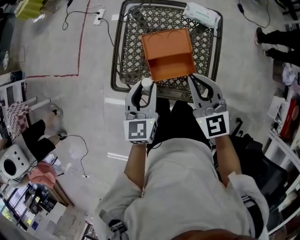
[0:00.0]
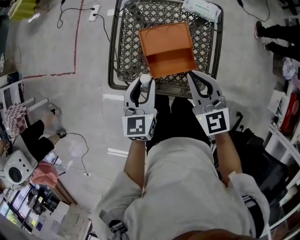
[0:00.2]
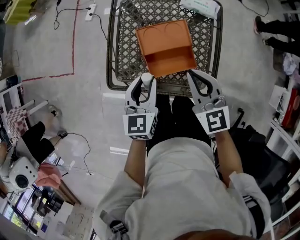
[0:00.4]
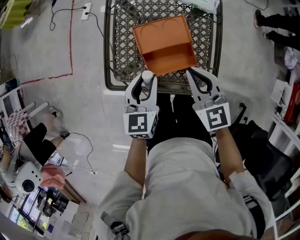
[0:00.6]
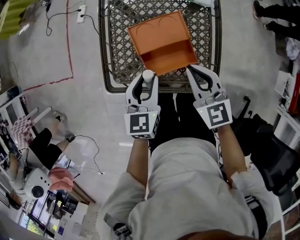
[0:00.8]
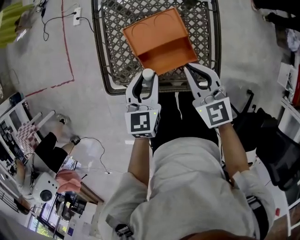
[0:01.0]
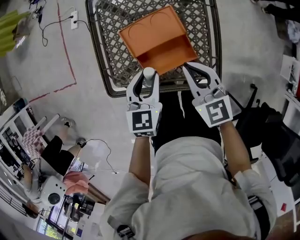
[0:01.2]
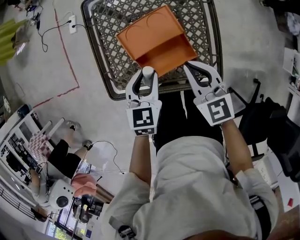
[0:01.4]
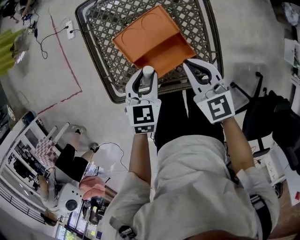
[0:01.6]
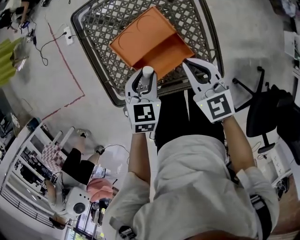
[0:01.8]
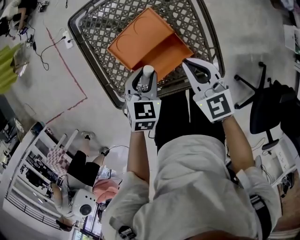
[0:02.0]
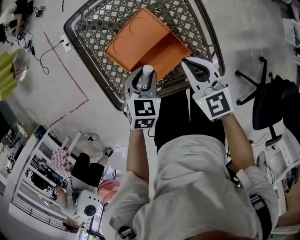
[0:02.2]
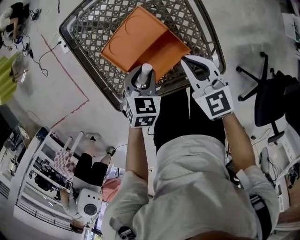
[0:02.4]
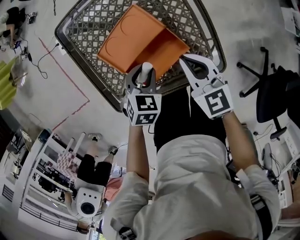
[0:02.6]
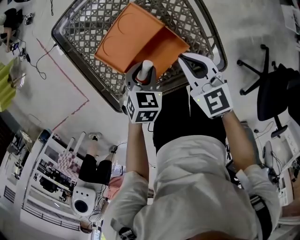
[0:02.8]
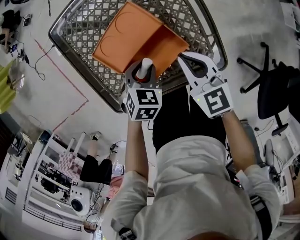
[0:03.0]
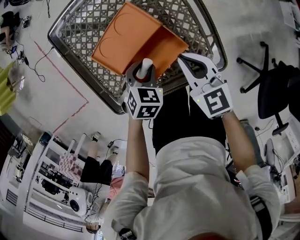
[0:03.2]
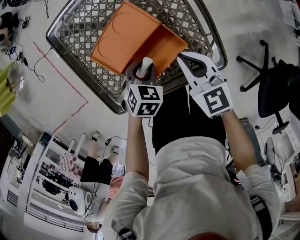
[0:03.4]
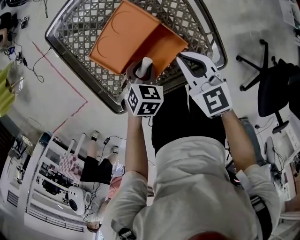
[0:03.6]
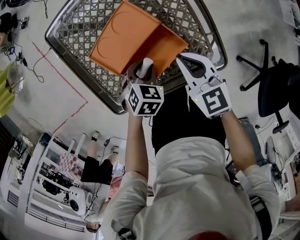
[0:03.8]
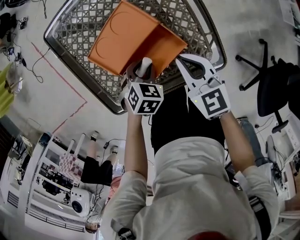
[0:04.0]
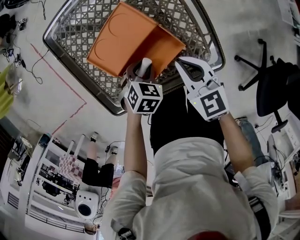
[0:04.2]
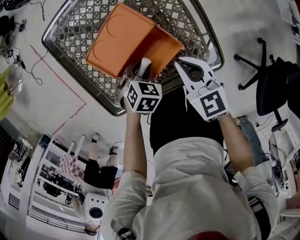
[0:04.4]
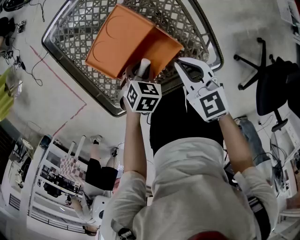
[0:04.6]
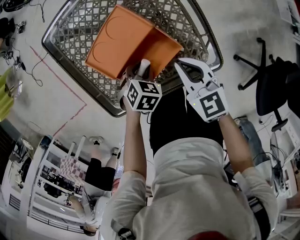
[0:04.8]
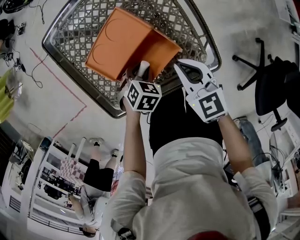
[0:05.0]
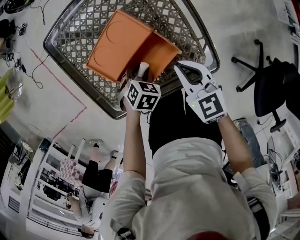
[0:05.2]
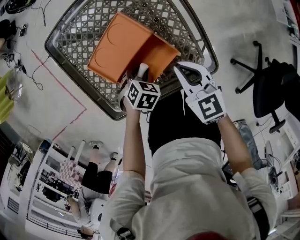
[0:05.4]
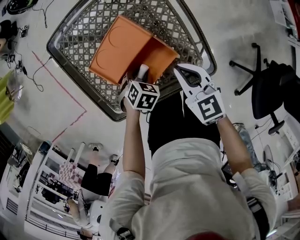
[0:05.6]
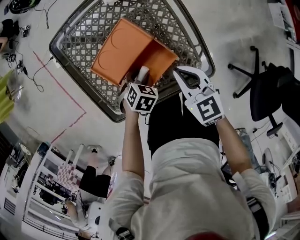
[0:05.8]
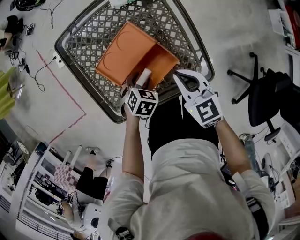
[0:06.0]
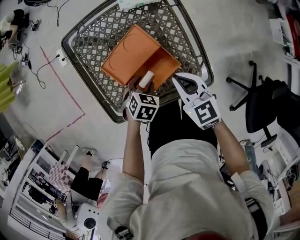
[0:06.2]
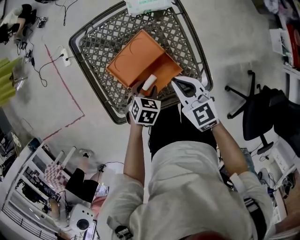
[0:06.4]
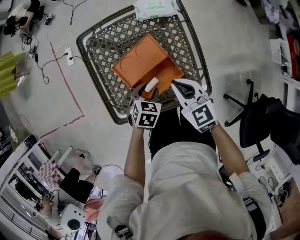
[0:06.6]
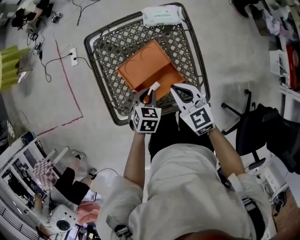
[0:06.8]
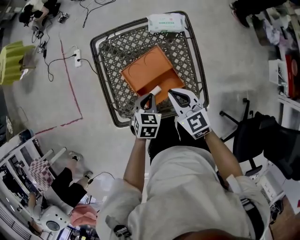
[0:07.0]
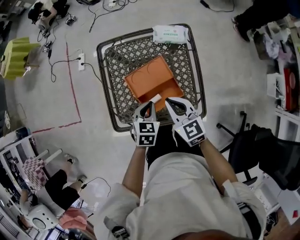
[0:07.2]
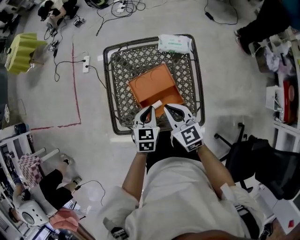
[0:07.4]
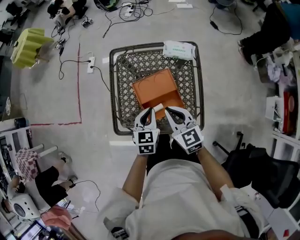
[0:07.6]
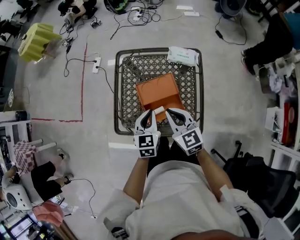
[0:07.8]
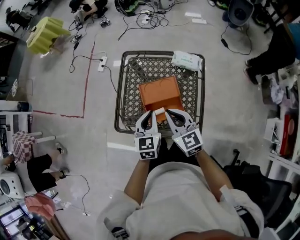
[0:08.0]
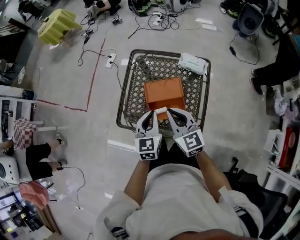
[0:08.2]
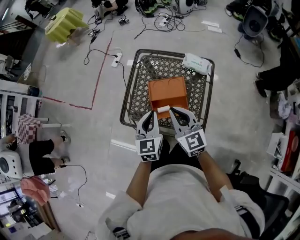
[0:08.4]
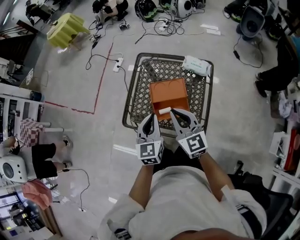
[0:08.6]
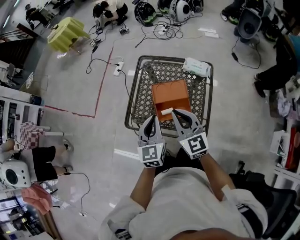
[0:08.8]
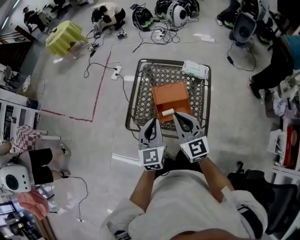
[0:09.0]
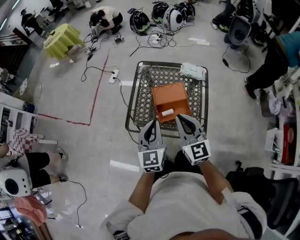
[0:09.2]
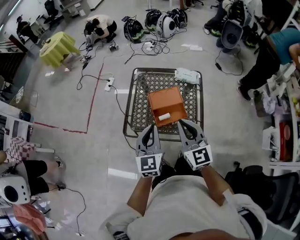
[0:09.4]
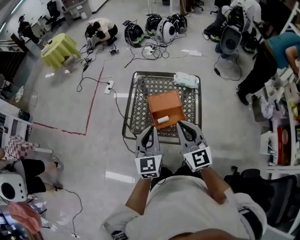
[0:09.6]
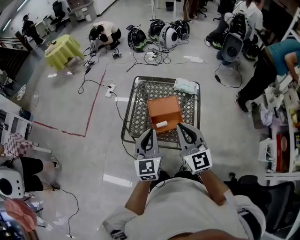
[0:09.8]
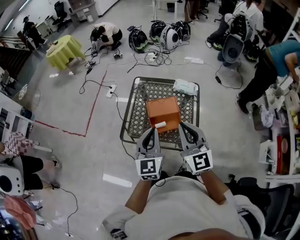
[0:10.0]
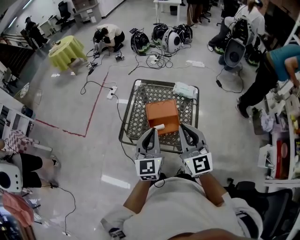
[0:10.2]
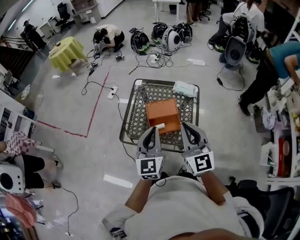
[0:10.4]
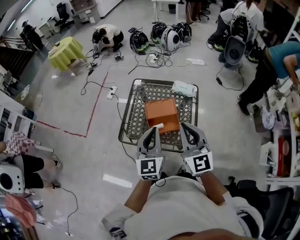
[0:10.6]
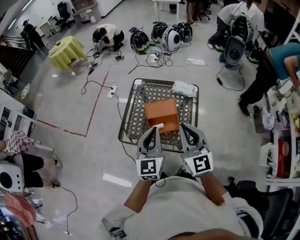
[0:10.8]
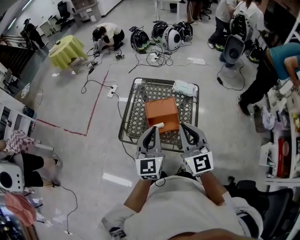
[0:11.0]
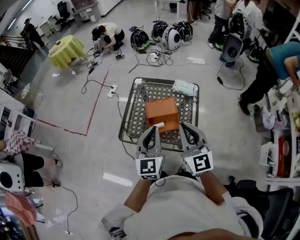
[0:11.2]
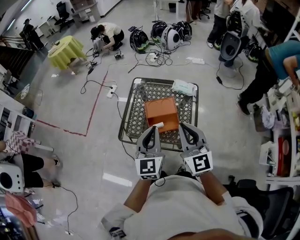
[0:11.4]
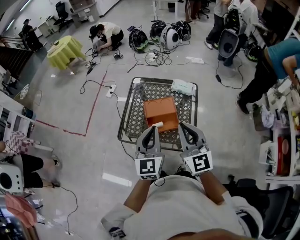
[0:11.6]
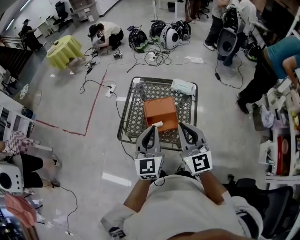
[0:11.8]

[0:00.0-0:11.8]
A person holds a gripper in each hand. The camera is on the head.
0:00.0 to 0:01.4: Both grippers move downward, approximately 15 cm. The left gripper rotates approximately 30 degrees.
0:01.4 to 0:03.0: Both grippers move downward, about 10 cm. The left gripper turns by about 40 degrees.
0:03.0 to 0:04.4: The left gripper ends up roughly 5 cm from where it was.
0:04.4 to 0:06.0: The grippers make only small movements.
0:06.0 to 0:07.4: The right gripper is displaced upward by approximately 10 cm. The left gripper travels upward by some 20 cm, points its fingers some 30 degrees further upward, and closes.
0:07.4 to 0:08.8: The two grippers go roughly 15 cm upward and backward. The left gripper changes its angle by approximately 40 degrees, while the right gripper swivels some 20 degrees.
0:08.8 to 0:10.4: Both grippers move upward and backward, approximately 15 cm.
0:10.4 to 0:11.8: Neither gripper changes place.

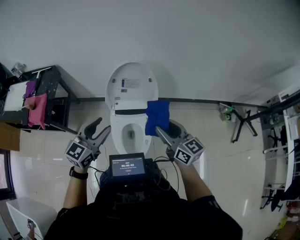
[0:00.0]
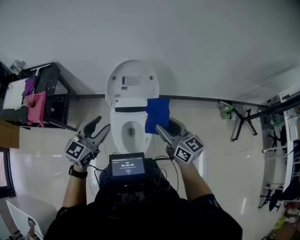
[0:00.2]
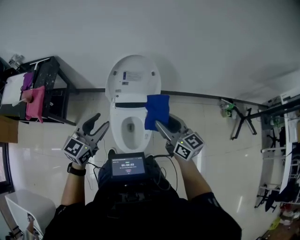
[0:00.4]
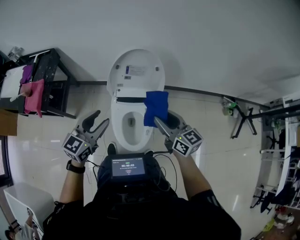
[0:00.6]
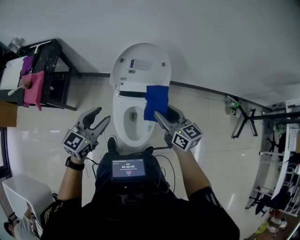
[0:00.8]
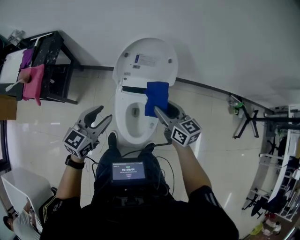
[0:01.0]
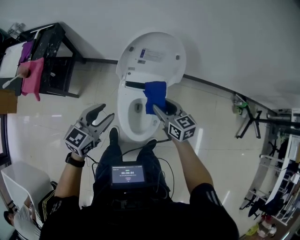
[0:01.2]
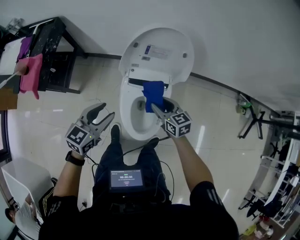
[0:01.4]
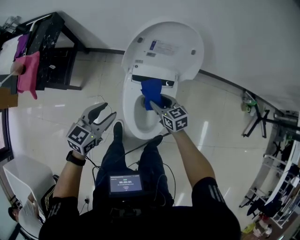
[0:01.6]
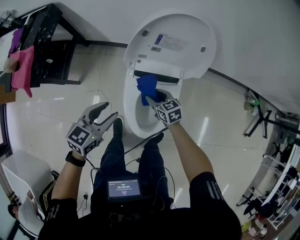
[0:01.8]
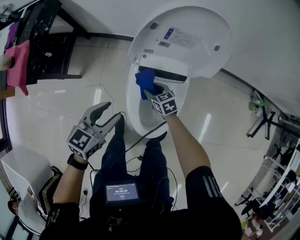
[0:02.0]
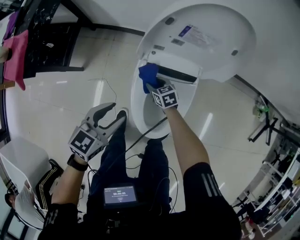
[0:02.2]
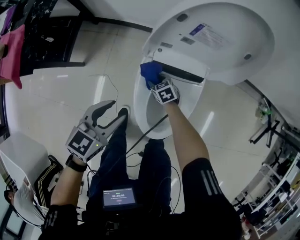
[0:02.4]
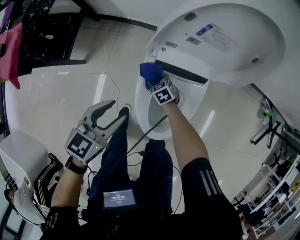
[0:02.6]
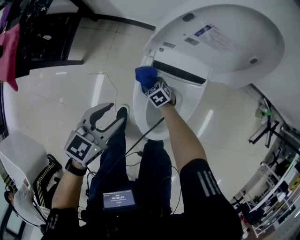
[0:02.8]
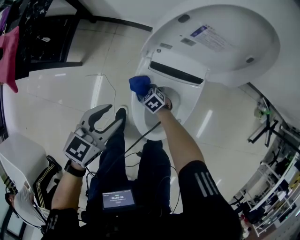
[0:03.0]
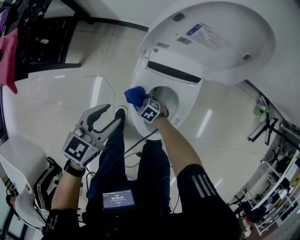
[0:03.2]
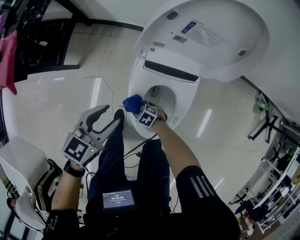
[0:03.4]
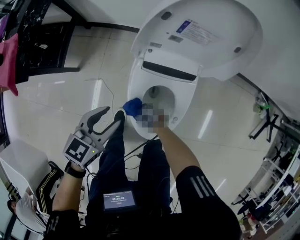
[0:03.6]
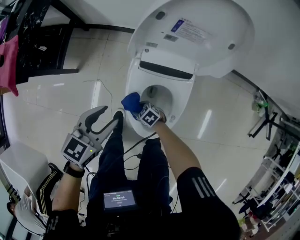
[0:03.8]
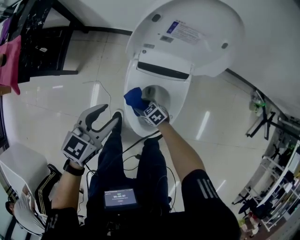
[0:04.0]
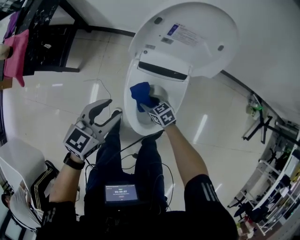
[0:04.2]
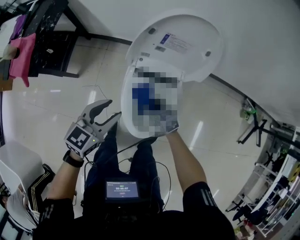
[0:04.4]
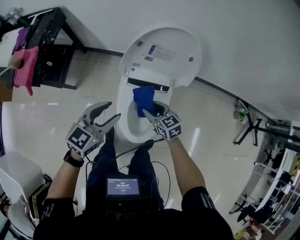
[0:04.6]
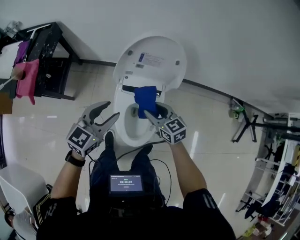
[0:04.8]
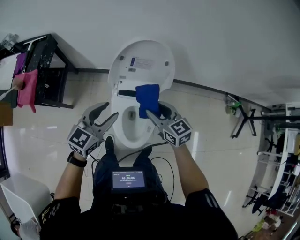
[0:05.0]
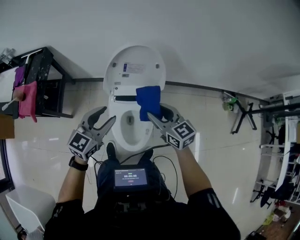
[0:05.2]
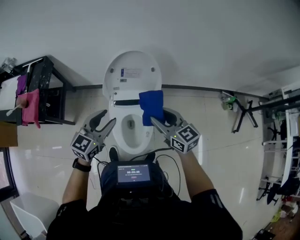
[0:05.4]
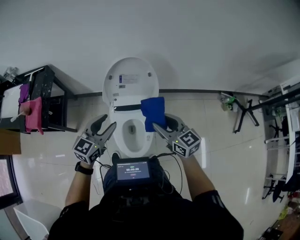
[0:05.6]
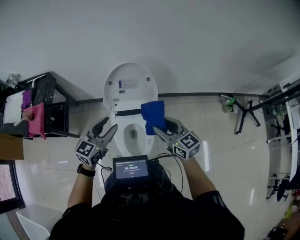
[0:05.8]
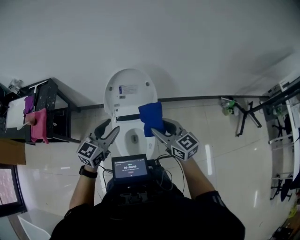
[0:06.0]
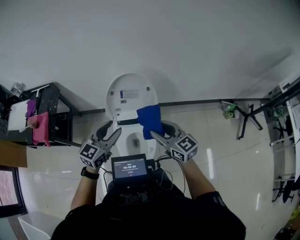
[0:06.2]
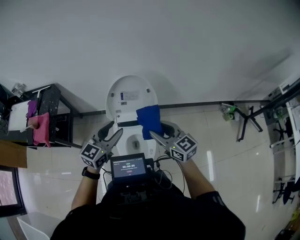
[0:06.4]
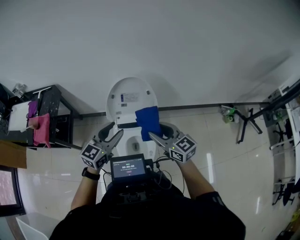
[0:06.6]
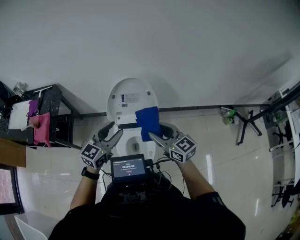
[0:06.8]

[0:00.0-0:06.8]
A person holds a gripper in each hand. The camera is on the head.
0:00.0 to 0:01.4: The right gripper travels downward and forward by roughly 30 cm, and changes its angle by roughly 30 degrees; the left gripper is displaced downward by about 20 cm.
0:01.4 to 0:02.8: The left gripper heads downward, covering approximately 15 cm. Meanwhile the right gripper heads downward, covering roughly 40 cm, and tilts its fingers approximately 30 degrees downward.
0:02.8 to 0:04.0: The left gripper changes place by some 5 cm. Meanwhile the right gripper moves roughly 15 cm.
0:04.0 to 0:05.4: The left gripper heads upward, covering roughly 25 cm, and changes its angle by approximately 20 degrees; the right gripper travels upward by approximately 50 cm, and angles its fingers upward, by some 40 degrees.
0:05.4 to 0:06.8: The two grippers go some 5 cm upward.

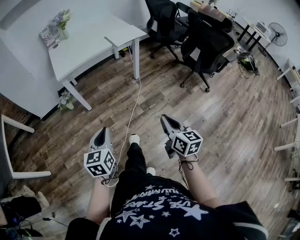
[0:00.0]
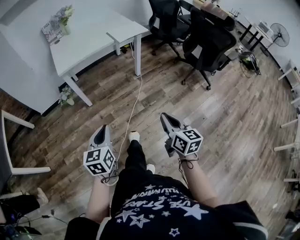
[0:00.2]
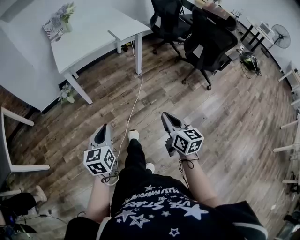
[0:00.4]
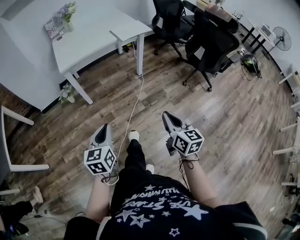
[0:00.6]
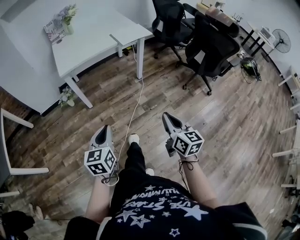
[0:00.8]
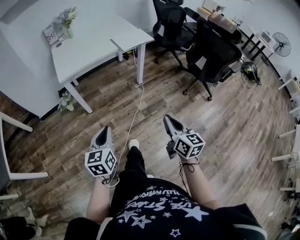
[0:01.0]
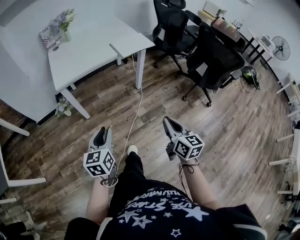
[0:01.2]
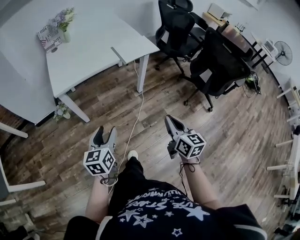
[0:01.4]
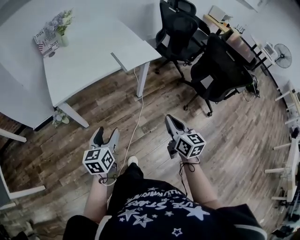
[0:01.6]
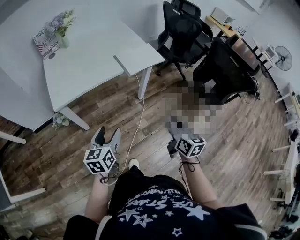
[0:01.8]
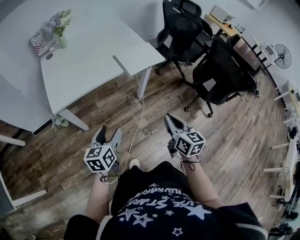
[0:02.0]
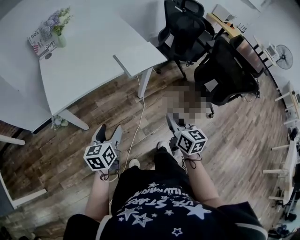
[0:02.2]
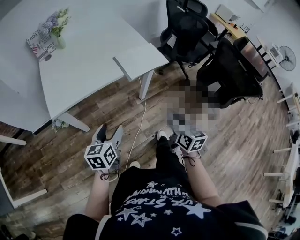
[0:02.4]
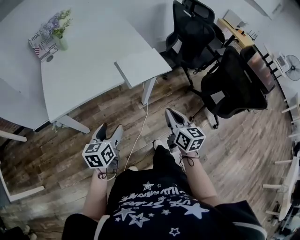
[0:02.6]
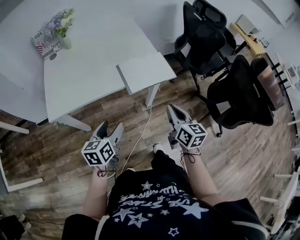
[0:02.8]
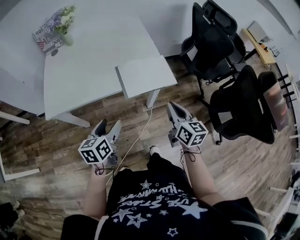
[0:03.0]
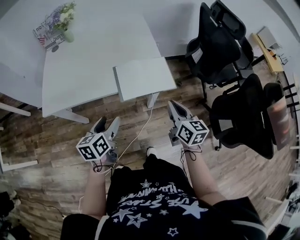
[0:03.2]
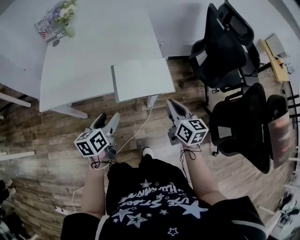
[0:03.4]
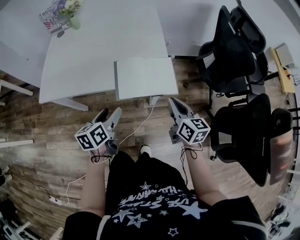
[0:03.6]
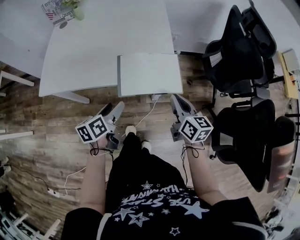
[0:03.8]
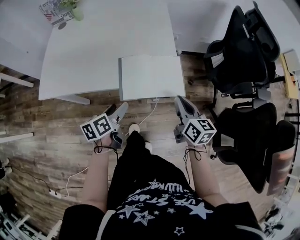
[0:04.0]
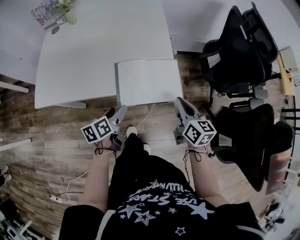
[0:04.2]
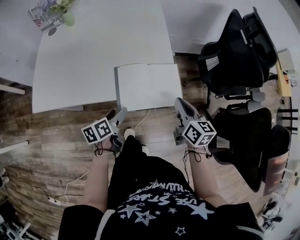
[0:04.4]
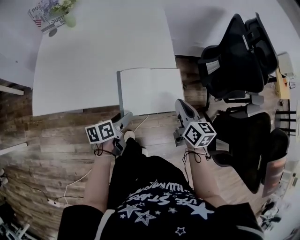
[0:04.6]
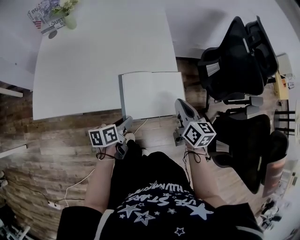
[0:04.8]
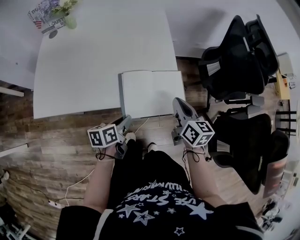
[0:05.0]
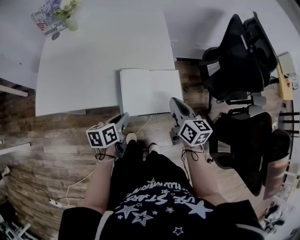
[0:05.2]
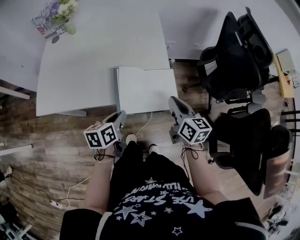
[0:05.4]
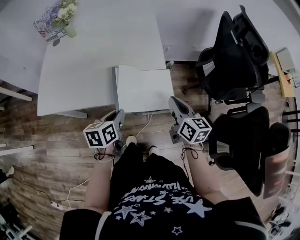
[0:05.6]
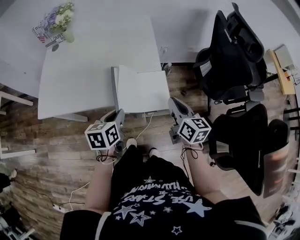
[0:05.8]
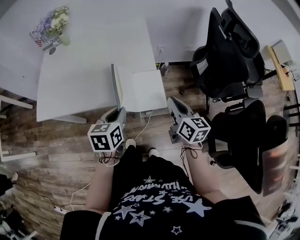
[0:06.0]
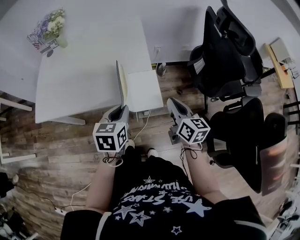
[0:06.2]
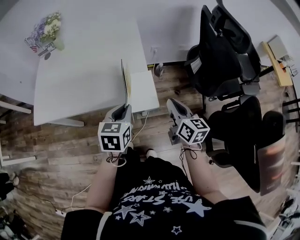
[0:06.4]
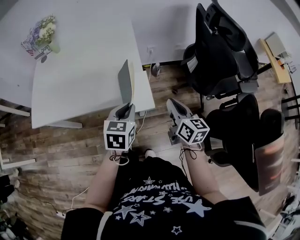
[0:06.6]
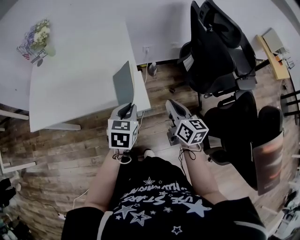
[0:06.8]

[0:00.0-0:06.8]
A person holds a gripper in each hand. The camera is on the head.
0:00.0 to 0:01.4: Both grippers move forward, some 20 cm. The left gripper opens its fingers.
0:01.4 to 0:02.8: Both grippers move forward, approximately 30 cm.
0:02.8 to 0:04.0: The right gripper is displaced forward and to the right by approximately 20 cm. The left gripper shifts about 20 cm forward, to the right and downward, and changes its angle by some 30 degrees.
0:04.0 to 0:05.4: The left gripper closes. The right gripper travels forward by approximately 5 cm.
0:05.4 to 0:06.8: The two grippers go roughly 15 cm to the right. The left gripper turns by about 40 degrees.
